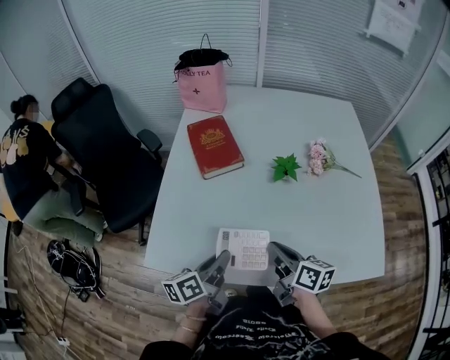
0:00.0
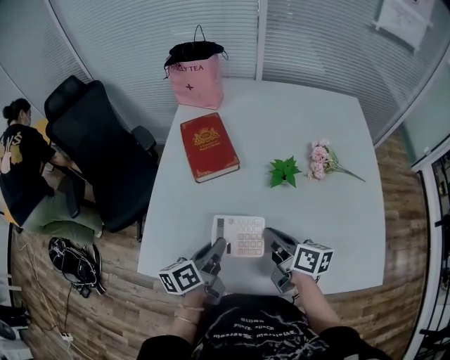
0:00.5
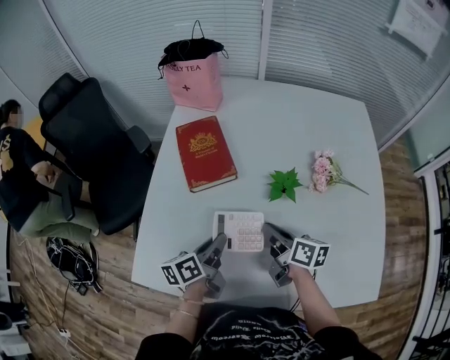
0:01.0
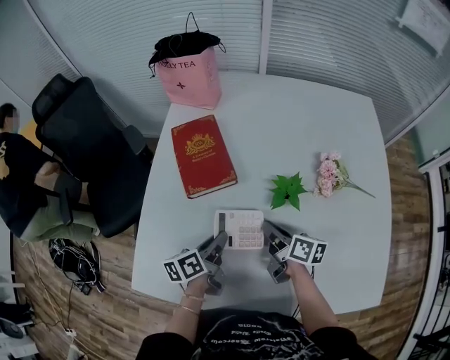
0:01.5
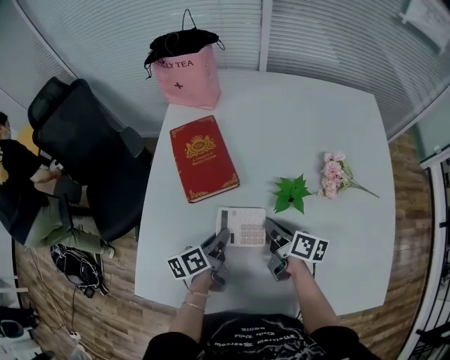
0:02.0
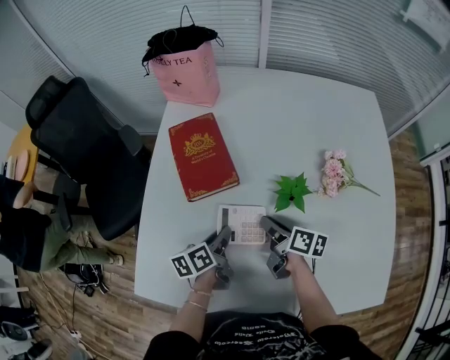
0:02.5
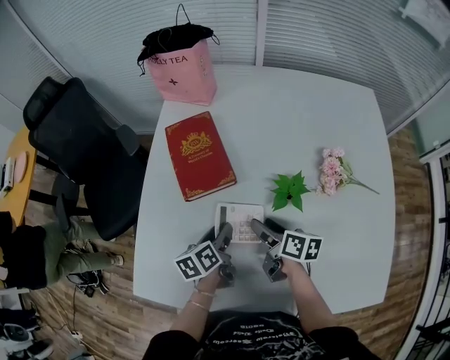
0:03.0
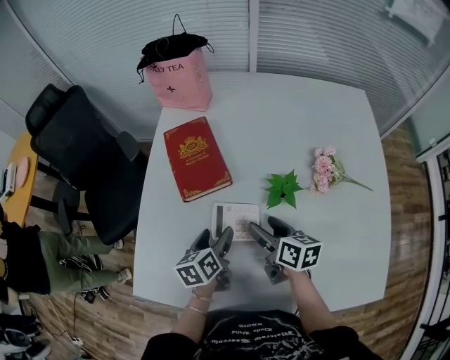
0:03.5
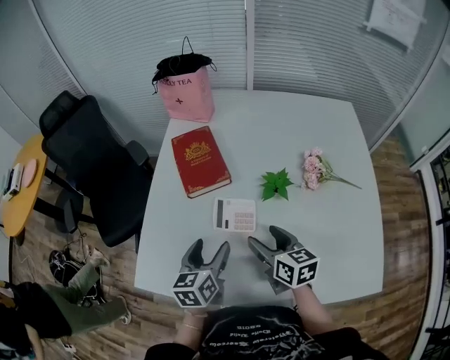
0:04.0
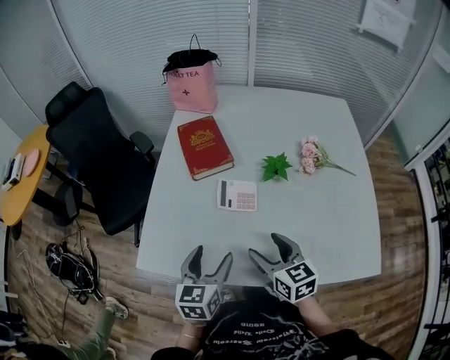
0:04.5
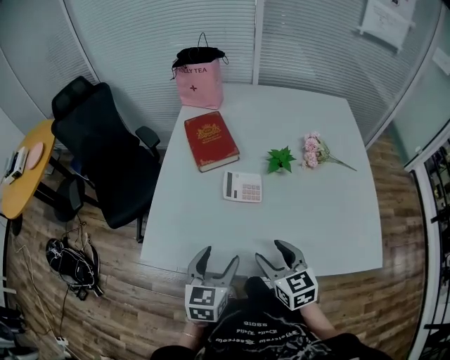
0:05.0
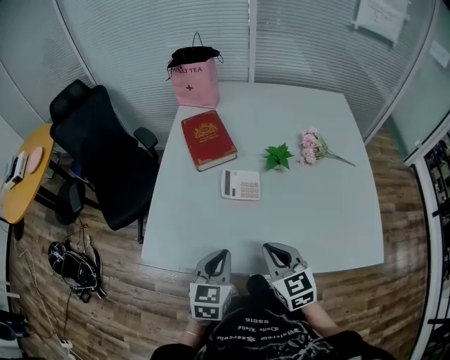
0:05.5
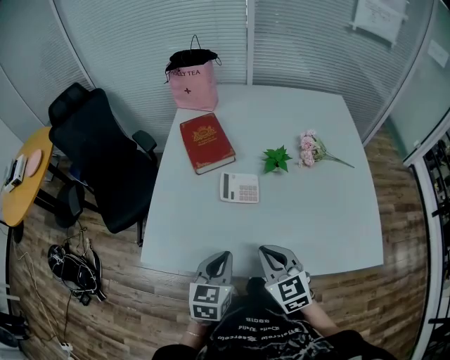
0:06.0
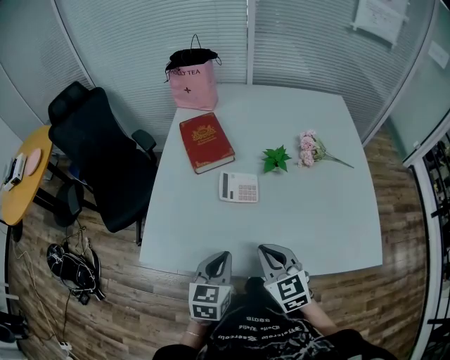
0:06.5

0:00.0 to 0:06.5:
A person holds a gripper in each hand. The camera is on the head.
0:00.0 to 0:02.0: The two grippers go about 25 cm forward and downward.
0:02.0 to 0:04.5: The grippers both shift backward and upward by some 25 cm. The left gripper rolls clockwise, seen from behind, by about 40 degrees, and opens up, while the right gripper twists approximately 50 degrees counterclockwise, seen from behind, and opens.
0:04.5 to 0:06.5: The right gripper moves backward, some 5 cm, and closes its fingers. Meanwhile the left gripper moves roughly 5 cm, and closes up.

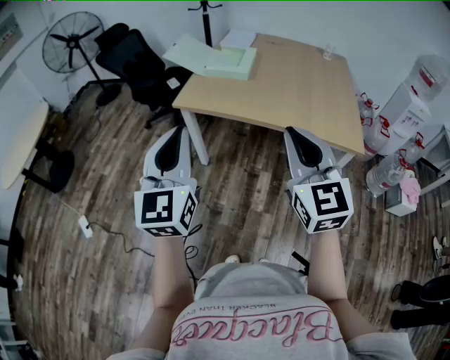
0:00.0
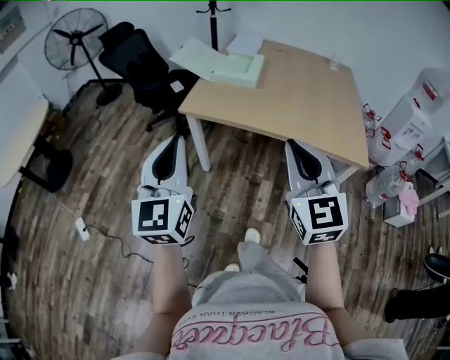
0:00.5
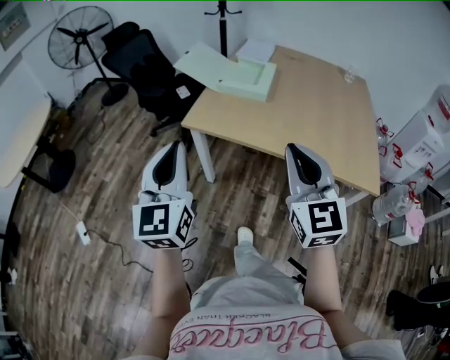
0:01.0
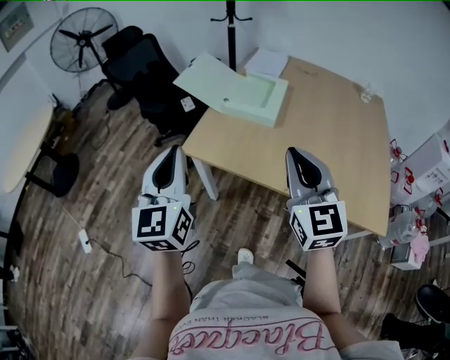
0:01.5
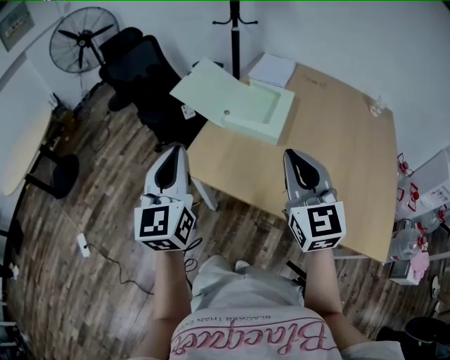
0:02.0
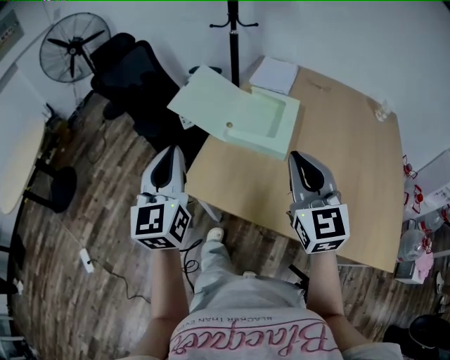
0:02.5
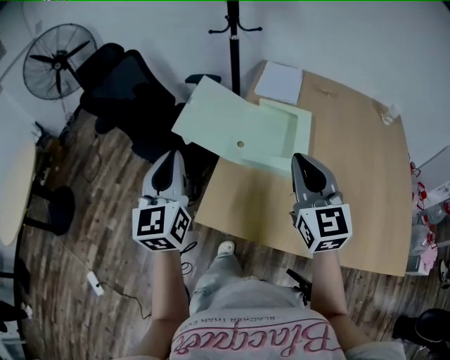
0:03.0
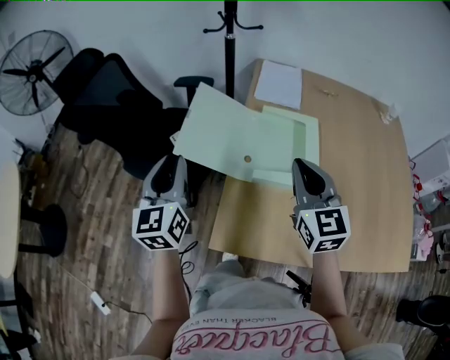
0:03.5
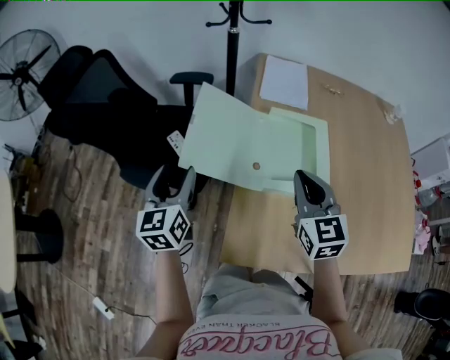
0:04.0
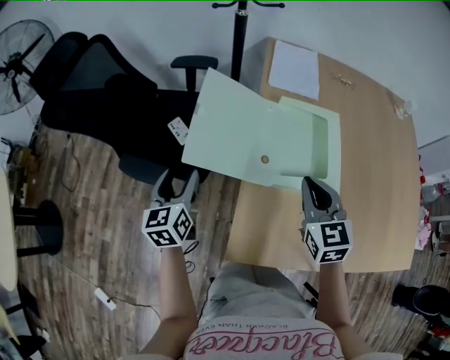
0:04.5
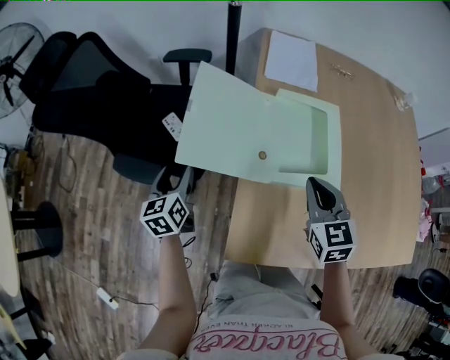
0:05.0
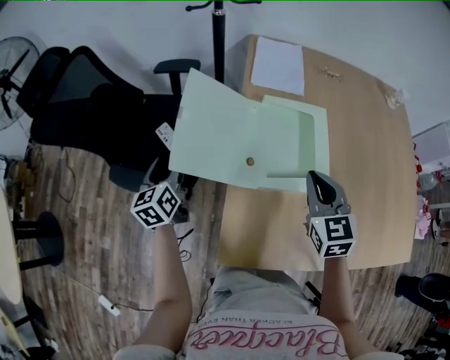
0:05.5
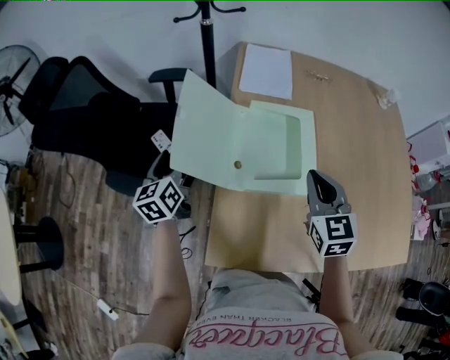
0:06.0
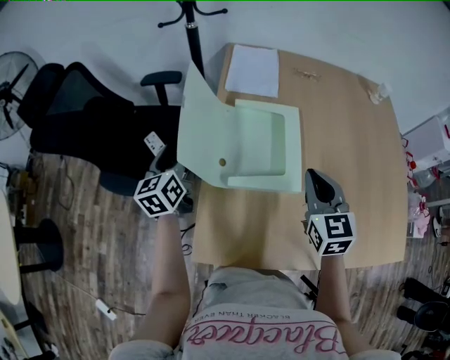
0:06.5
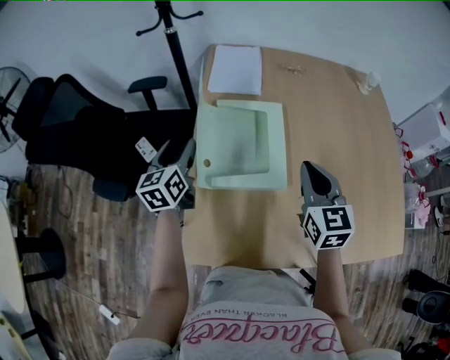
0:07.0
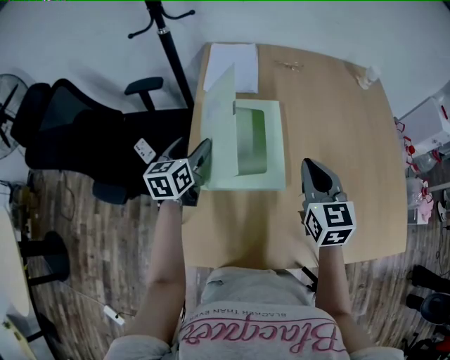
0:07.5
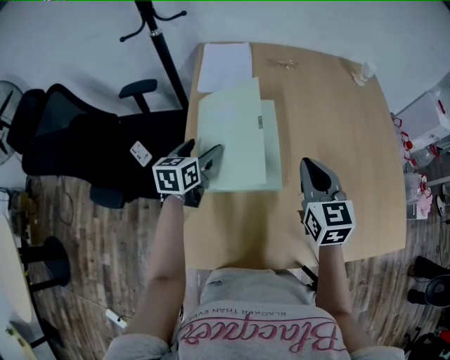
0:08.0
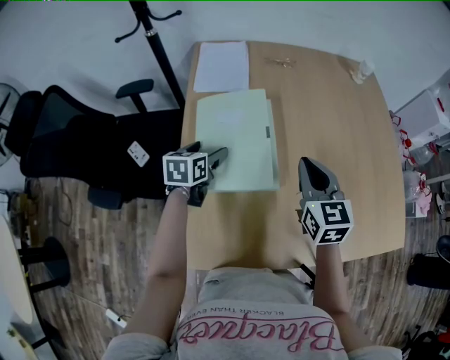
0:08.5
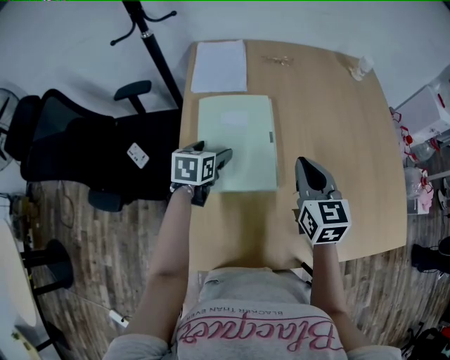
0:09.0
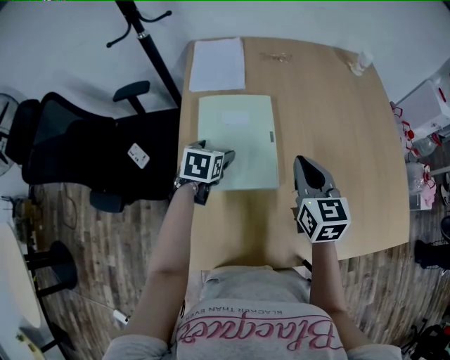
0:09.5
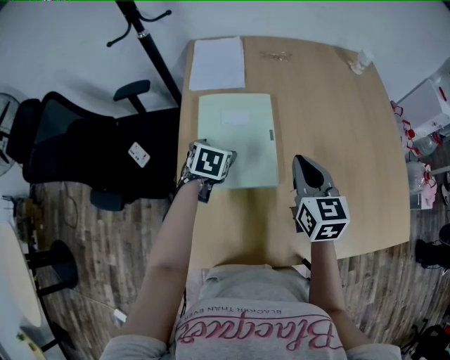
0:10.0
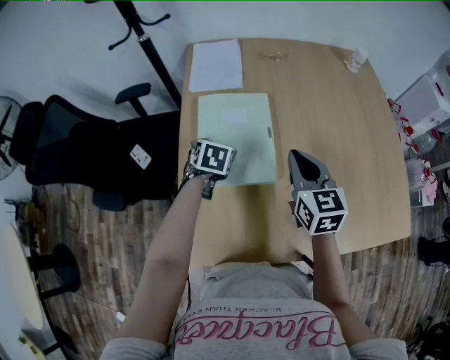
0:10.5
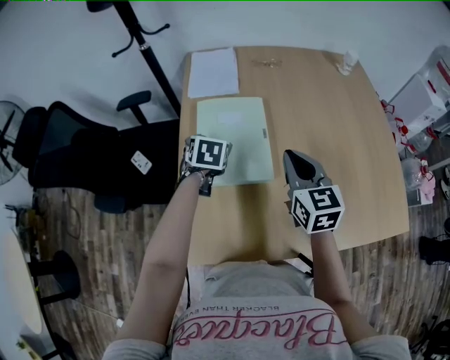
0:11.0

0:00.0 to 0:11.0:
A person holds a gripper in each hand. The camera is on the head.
0:00.0 to 0:02.0: The grippers both shift forward by roughly 35 cm.
0:02.0 to 0:03.5: The grippers both shift forward by roughly 30 cm.
0:03.5 to 0:05.5: The right gripper moves downward, about 10 cm. Meanwhile the left gripper travels downward and forward by approximately 20 cm, swivels roughly 20 degrees, and opens its fingers.
0:05.5 to 0:07.5: The right gripper travels to the right by about 15 cm. Meanwhile the left gripper shifts roughly 25 cm to the right, and changes its angle by roughly 20 degrees.
0:07.5 to 0:09.0: The left gripper goes roughly 10 cm to the right and downward, and changes its angle by about 20 degrees.
0:09.0 to 0:11.0: The left gripper rotates approximately 20 degrees.

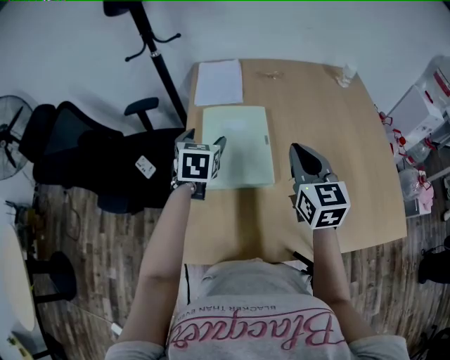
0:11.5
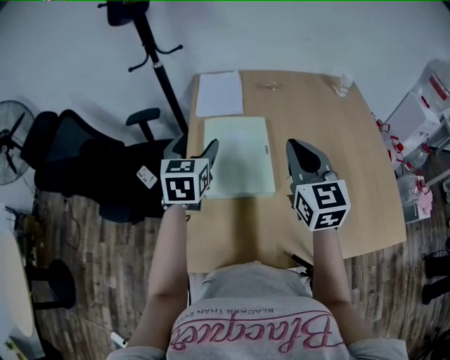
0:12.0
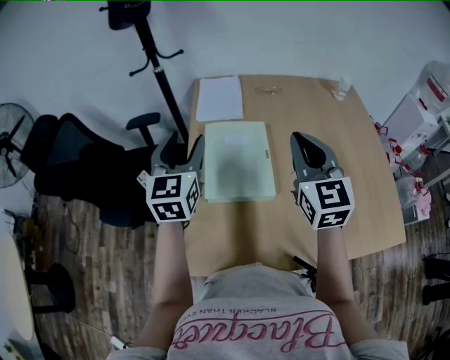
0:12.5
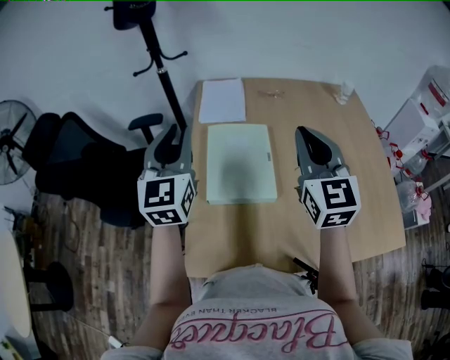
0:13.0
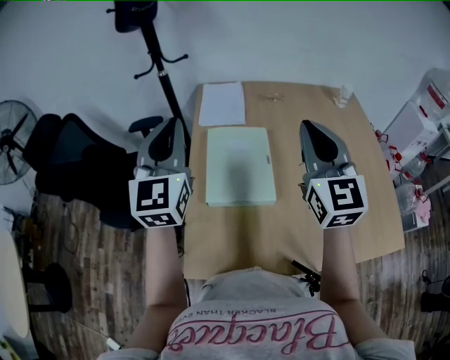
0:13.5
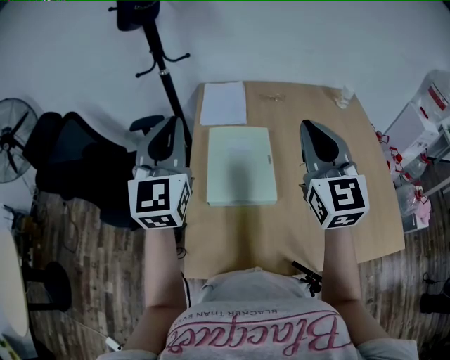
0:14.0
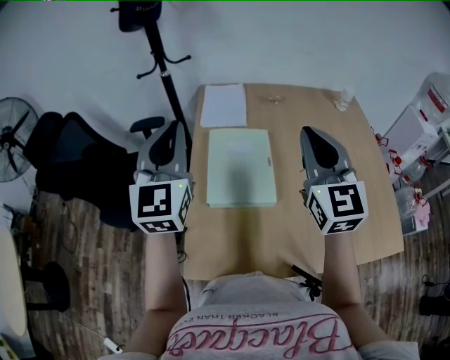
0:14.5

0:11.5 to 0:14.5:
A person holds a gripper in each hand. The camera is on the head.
0:11.5 to 0:13.0: The right gripper shifts some 10 cm upward, while the left gripper heads upward, covering about 15 cm, tilts its fingers some 40 degrees upward, and closes up.
0:13.0 to 0:14.5: The grippers make only small movements.

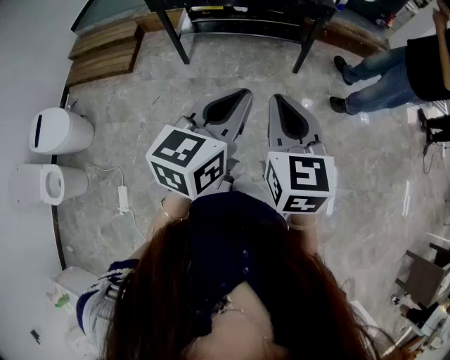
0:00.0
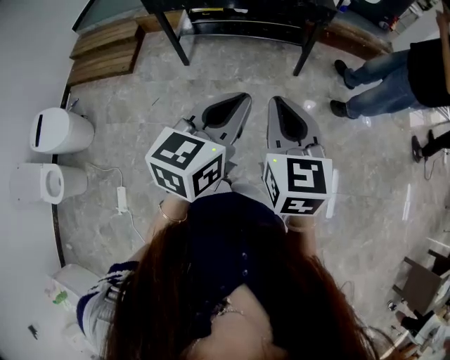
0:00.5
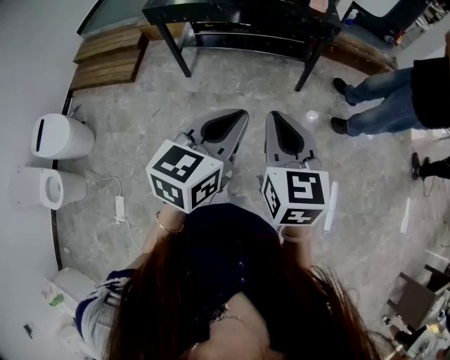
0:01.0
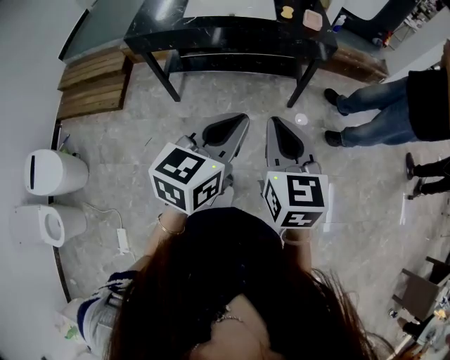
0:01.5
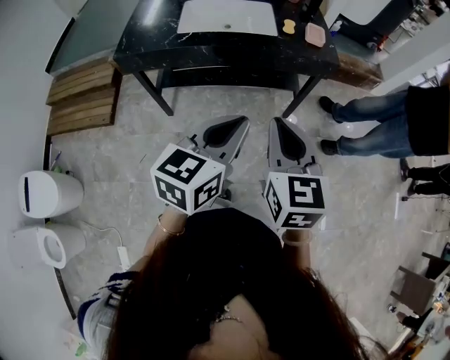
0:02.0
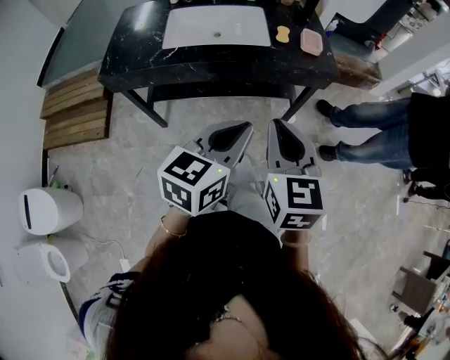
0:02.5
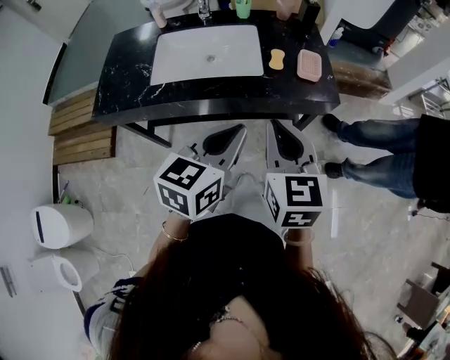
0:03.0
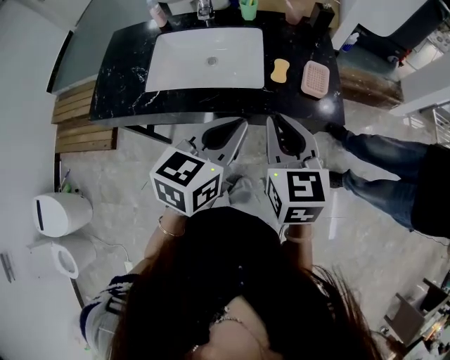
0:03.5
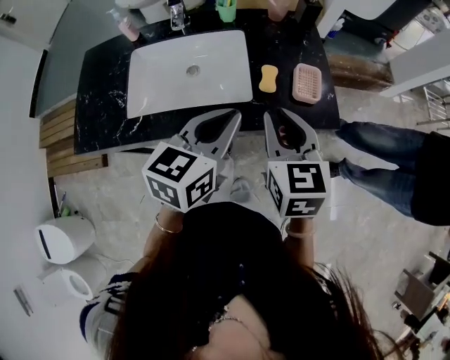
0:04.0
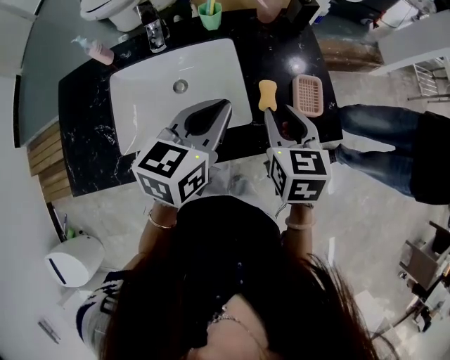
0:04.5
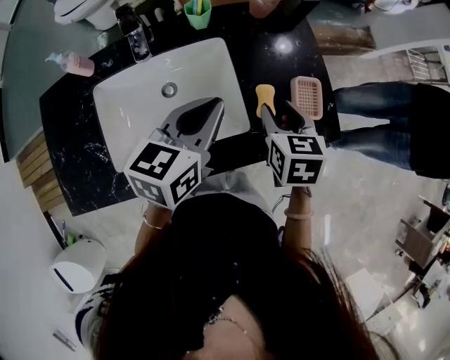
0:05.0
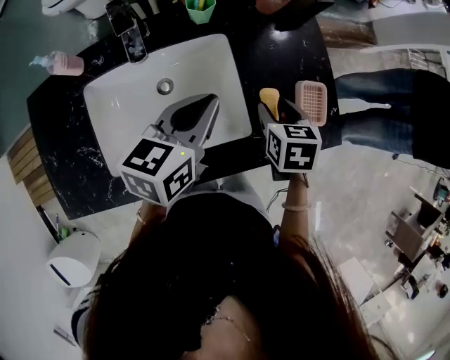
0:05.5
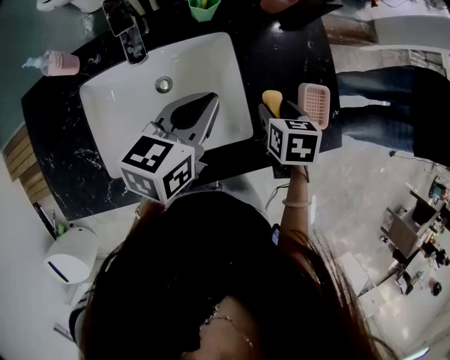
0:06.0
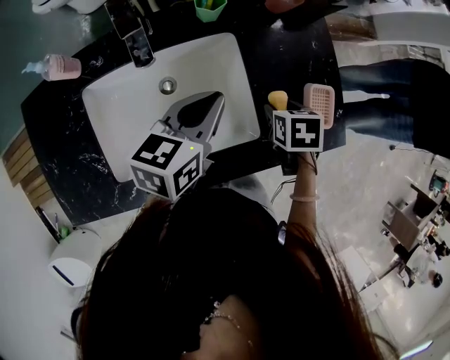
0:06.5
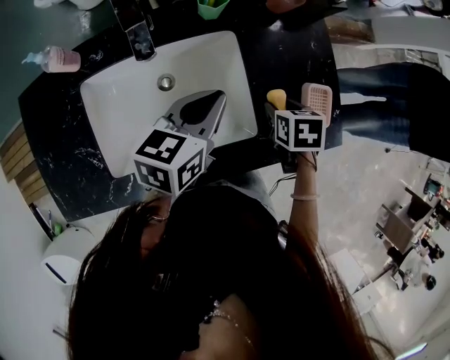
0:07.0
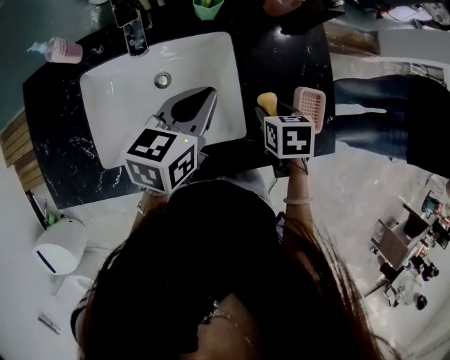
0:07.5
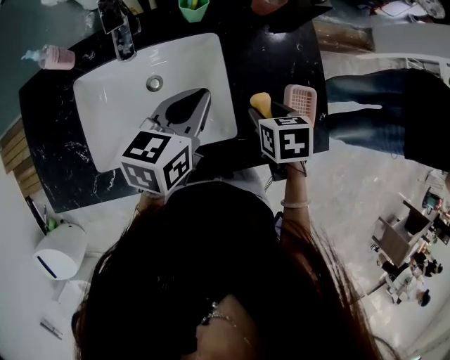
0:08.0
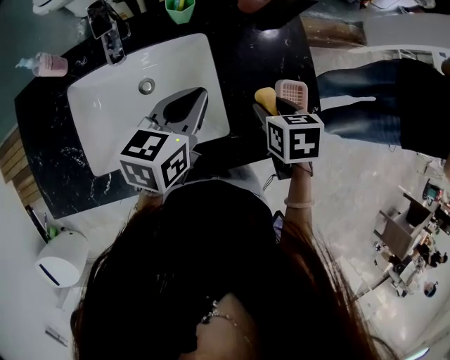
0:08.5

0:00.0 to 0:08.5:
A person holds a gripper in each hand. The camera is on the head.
0:00.0 to 0:02.0: The grippers both shift forward by roughly 35 cm.
0:02.0 to 0:04.0: The two grippers travel together, forward, about 40 cm.
0:04.0 to 0:06.5: The right gripper heads downward and forward, covering roughly 25 cm, angles its fingers downward, by some 50 degrees, and opens its fingers. The left gripper goes approximately 25 cm forward, to the left and downward.
0:06.5 to 0:08.5: The right gripper travels upward by about 5 cm.
